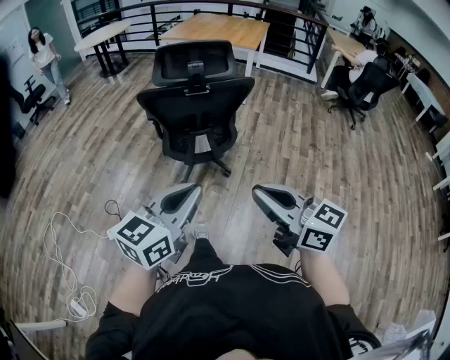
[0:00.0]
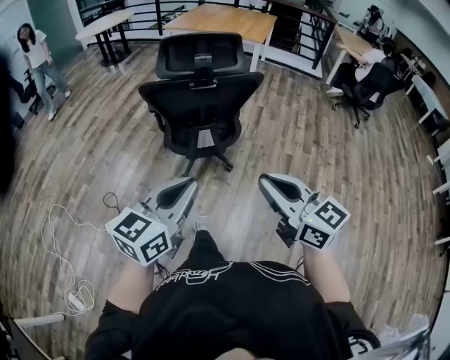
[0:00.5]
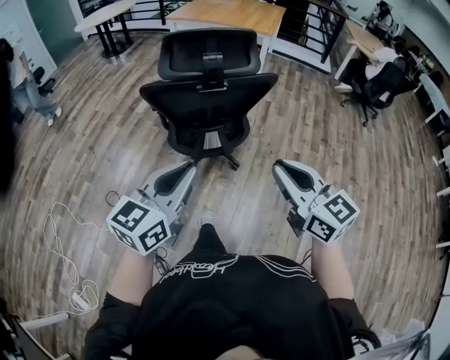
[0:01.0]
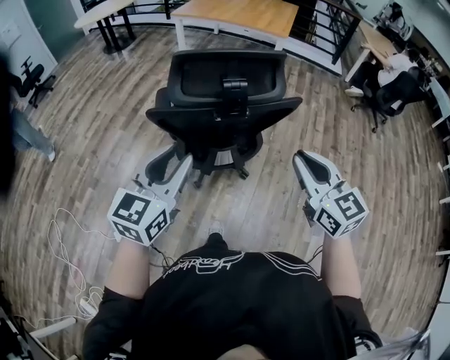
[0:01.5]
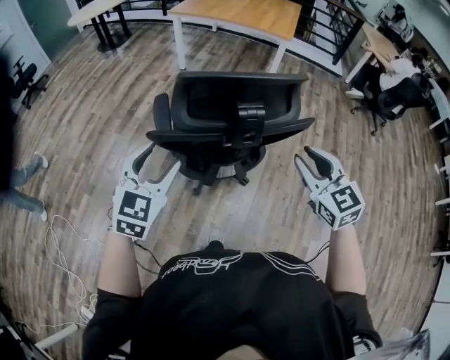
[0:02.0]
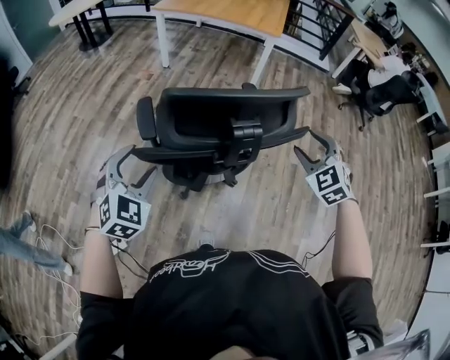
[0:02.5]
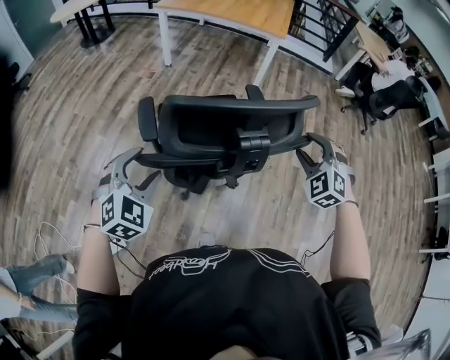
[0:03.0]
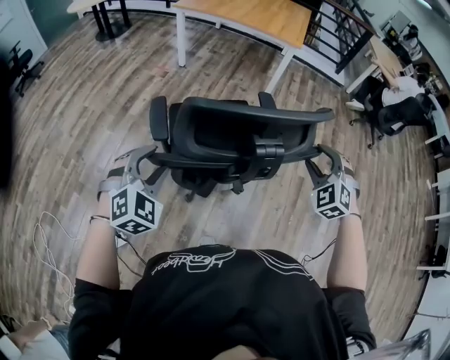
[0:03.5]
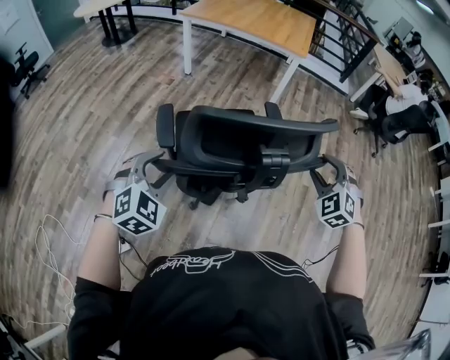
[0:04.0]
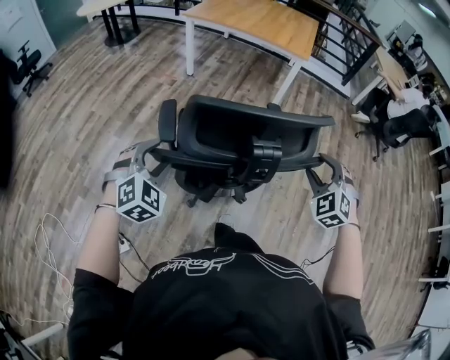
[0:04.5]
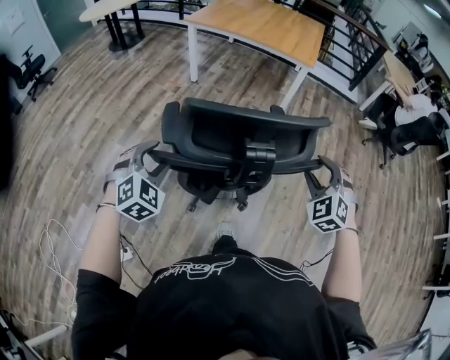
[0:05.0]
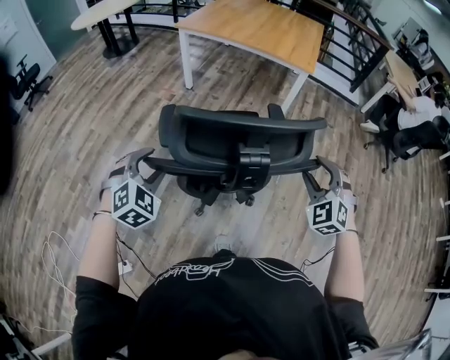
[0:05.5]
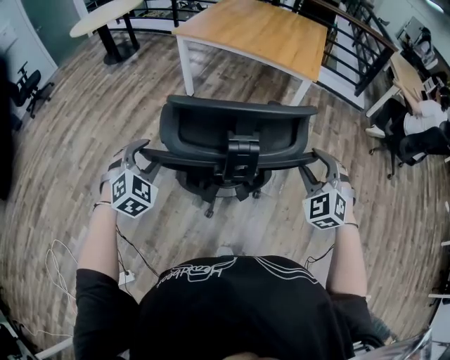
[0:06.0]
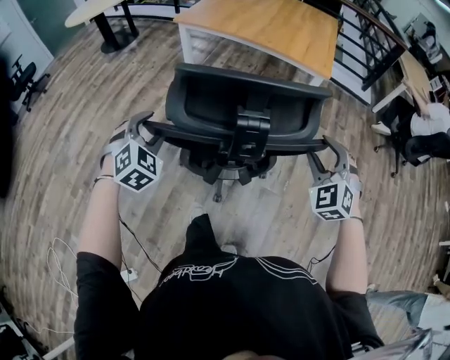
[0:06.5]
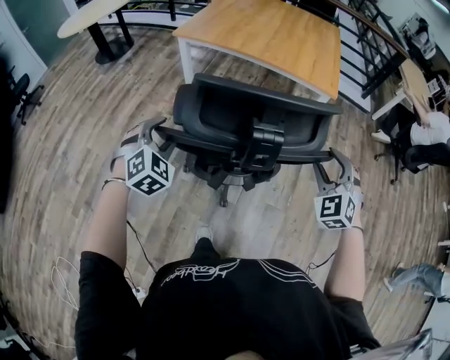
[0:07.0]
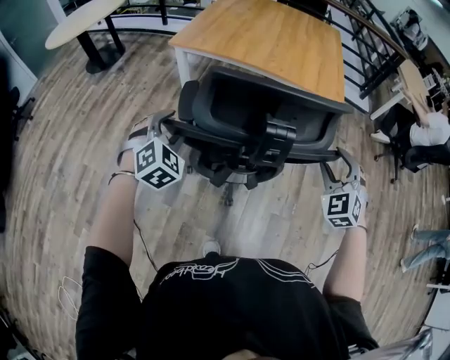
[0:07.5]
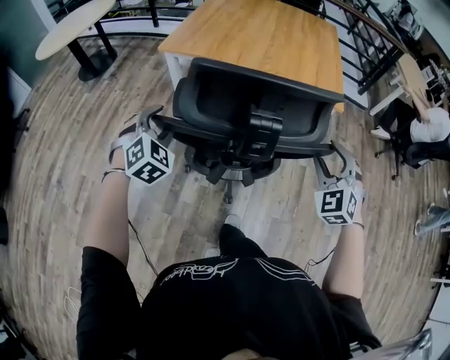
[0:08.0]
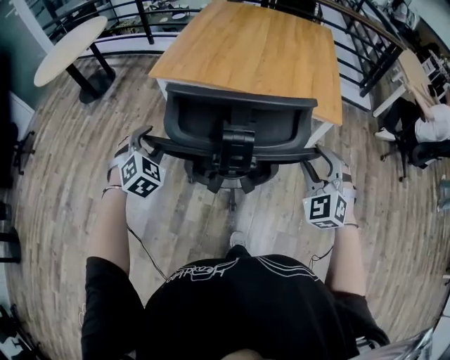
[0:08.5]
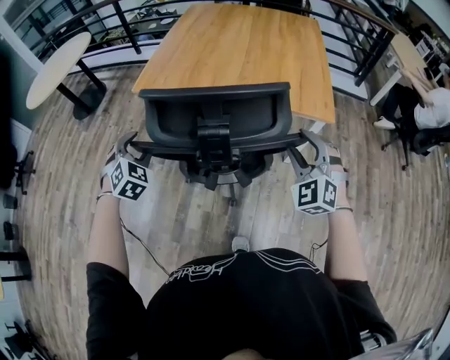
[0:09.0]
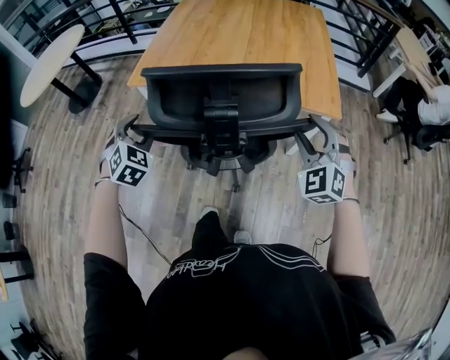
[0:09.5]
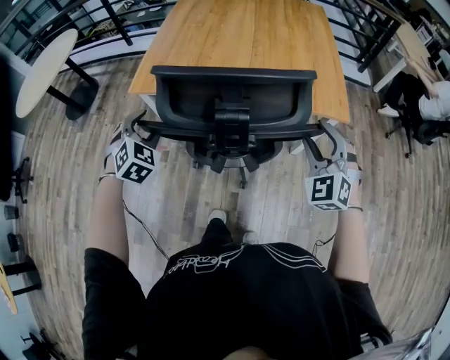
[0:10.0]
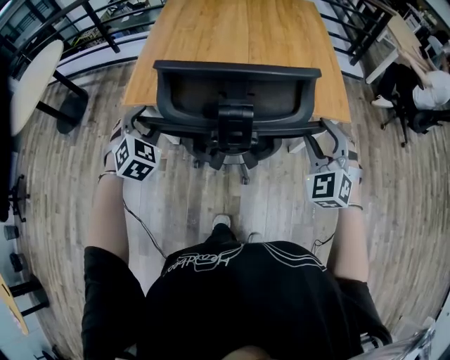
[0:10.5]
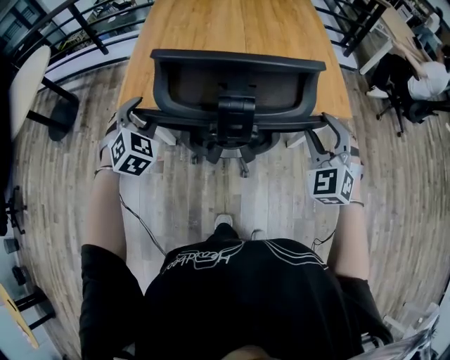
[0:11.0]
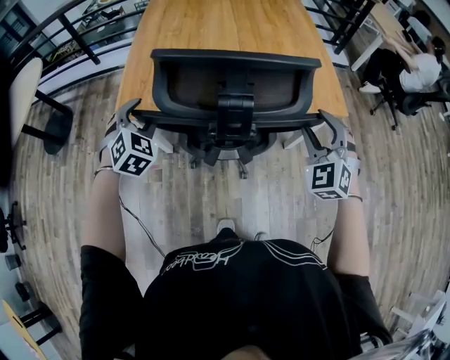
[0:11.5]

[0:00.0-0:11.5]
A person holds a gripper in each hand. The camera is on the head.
0:00.0 to 0:02.0: The left gripper travels forward and to the left by roughly 40 cm, turns by about 40 degrees, and opens up, while the right gripper heads forward, covering approximately 40 cm, and rotates approximately 40 degrees.
0:02.0 to 0:04.0: The right gripper travels forward and downward by approximately 15 cm, swivels approximately 50 degrees, and opens. The left gripper goes some 10 cm downward and forward, and rotates roughly 30 degrees.
0:04.0 to 0:06.0: The two grippers go approximately 25 cm forward.
0:06.0 to 0:07.5: The right gripper goes approximately 30 cm forward and to the left, while the left gripper goes roughly 40 cm forward.
0:07.5 to 0:09.5: Both grippers move forward, approximately 25 cm.
0:09.5 to 0:11.5: The left gripper is displaced forward by some 20 cm. The right gripper shifts about 10 cm forward and to the left.

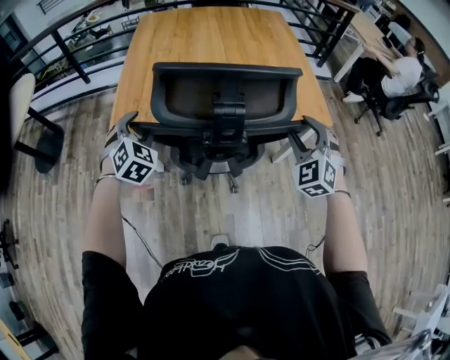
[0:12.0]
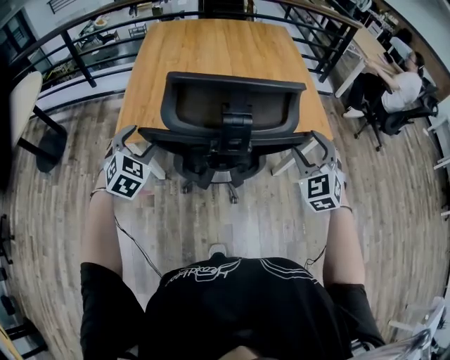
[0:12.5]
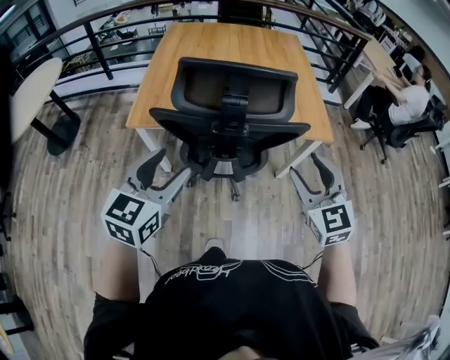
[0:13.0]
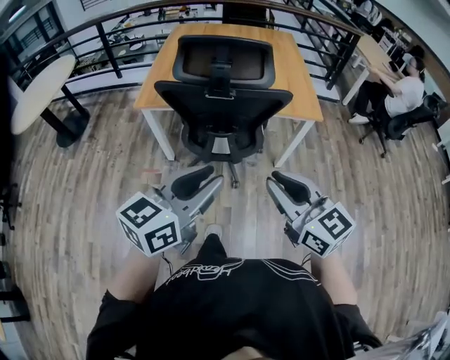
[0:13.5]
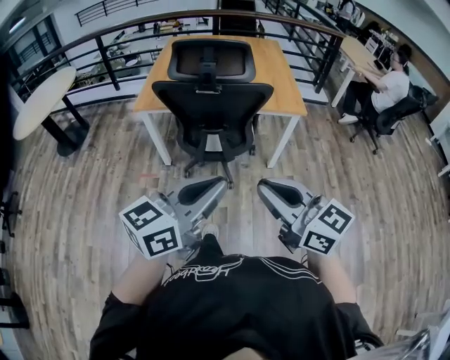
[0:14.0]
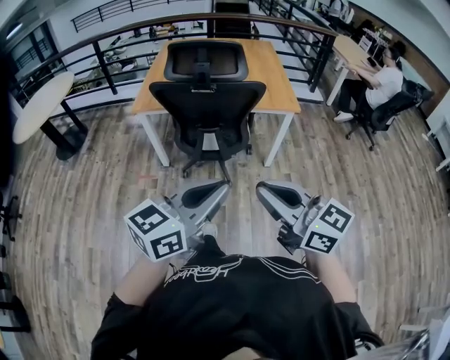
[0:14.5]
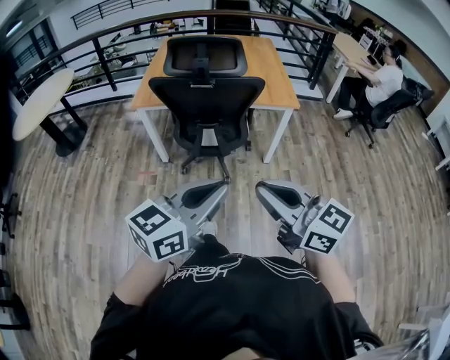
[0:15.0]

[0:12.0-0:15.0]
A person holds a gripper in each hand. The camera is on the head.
0:12.0 to 0:13.5: The left gripper travels backward, to the right and upward by some 50 cm, angles its fingers upward, by some 30 degrees, and closes up; the right gripper goes some 35 cm backward, changes its angle by about 70 degrees, and closes its fingers.
0:13.5 to 0:15.0: The right gripper travels backward by approximately 15 cm. The left gripper travels backward and to the right by about 15 cm, and closes up.

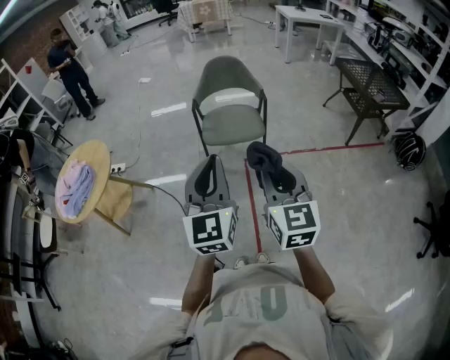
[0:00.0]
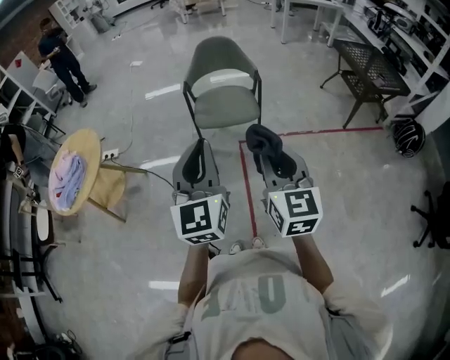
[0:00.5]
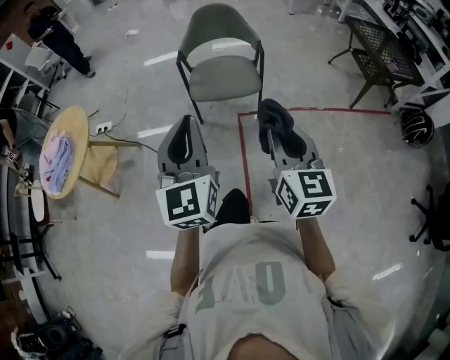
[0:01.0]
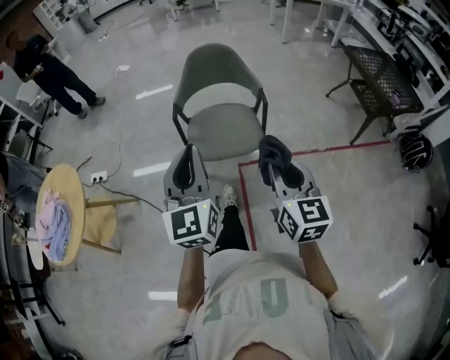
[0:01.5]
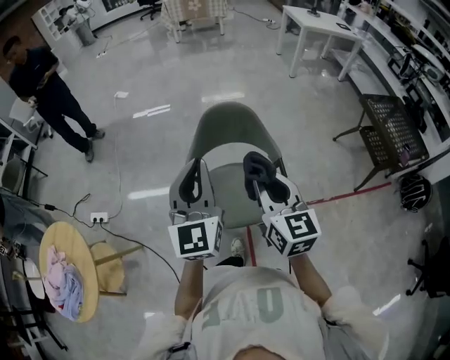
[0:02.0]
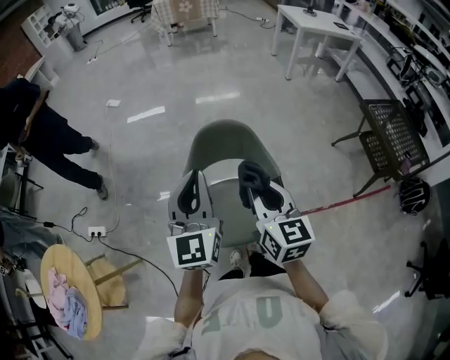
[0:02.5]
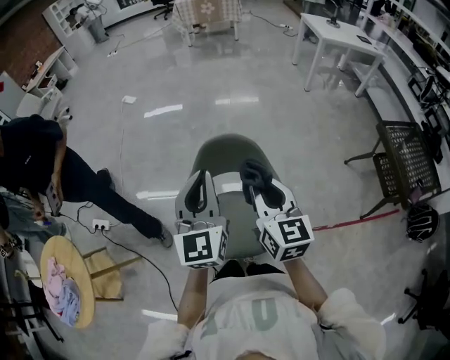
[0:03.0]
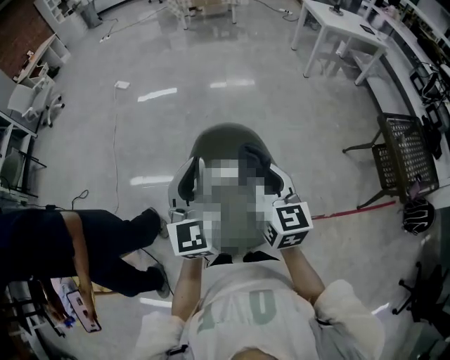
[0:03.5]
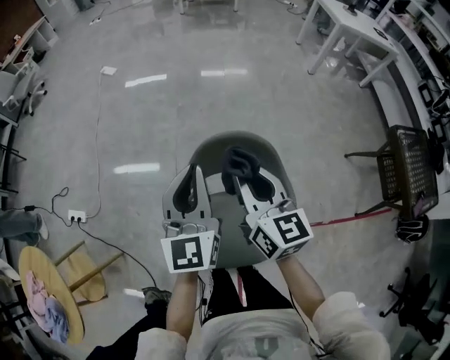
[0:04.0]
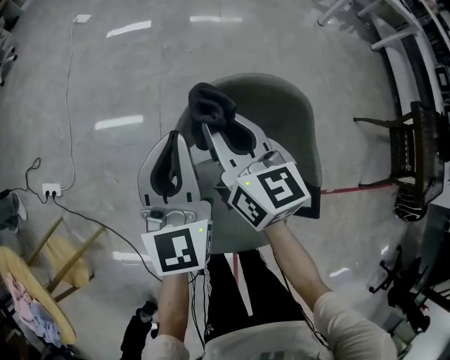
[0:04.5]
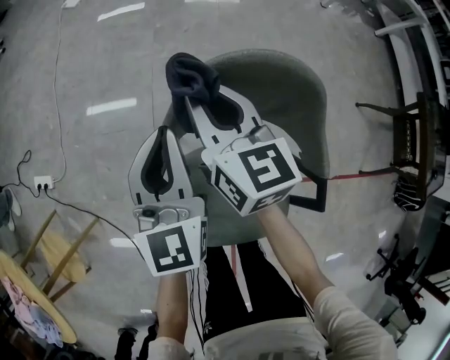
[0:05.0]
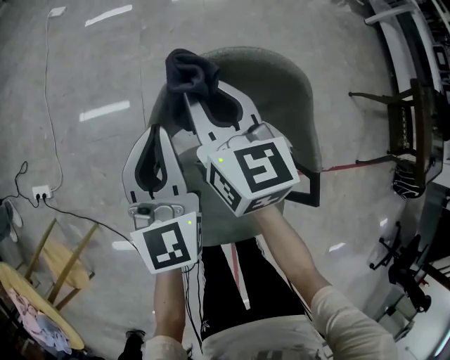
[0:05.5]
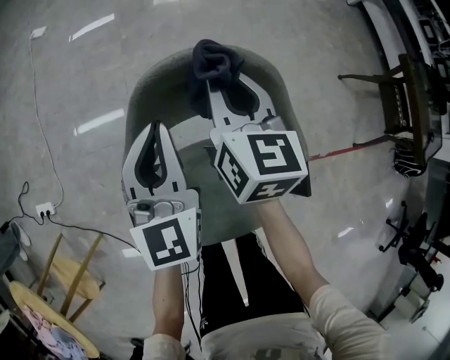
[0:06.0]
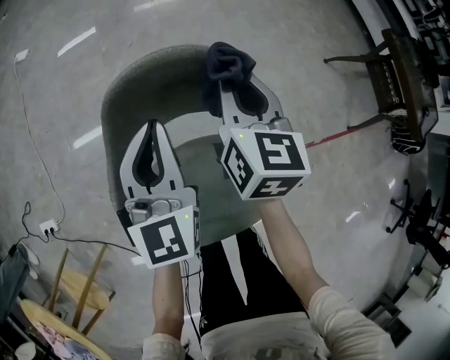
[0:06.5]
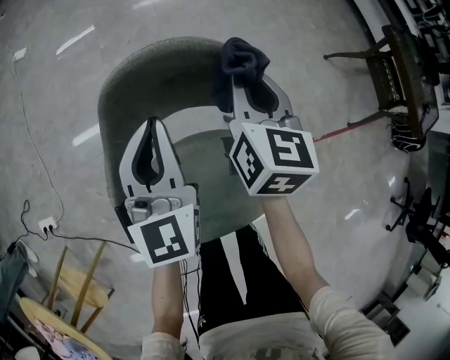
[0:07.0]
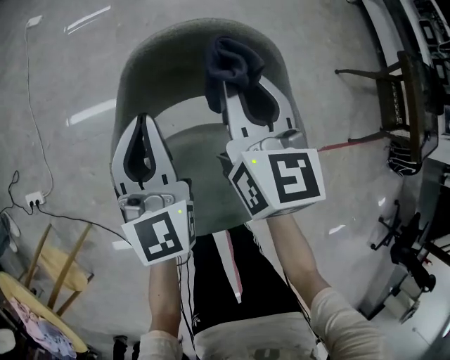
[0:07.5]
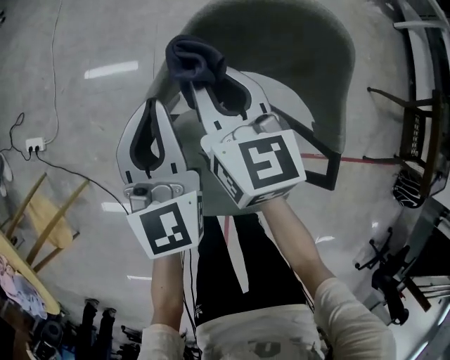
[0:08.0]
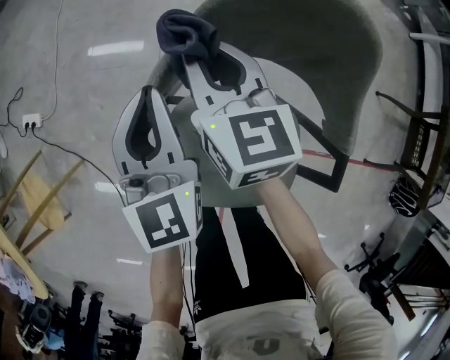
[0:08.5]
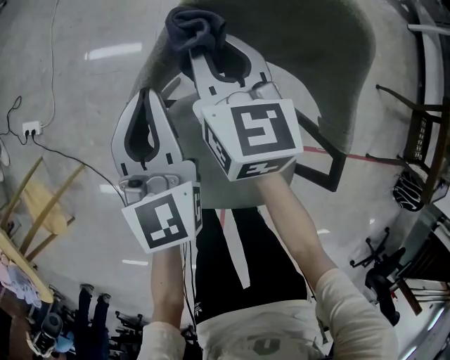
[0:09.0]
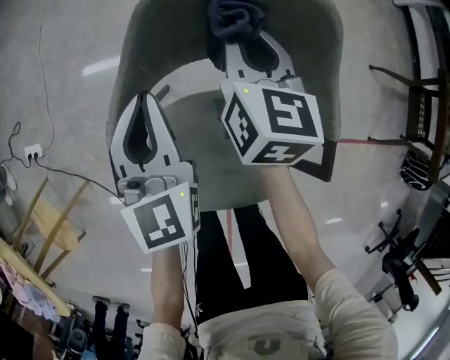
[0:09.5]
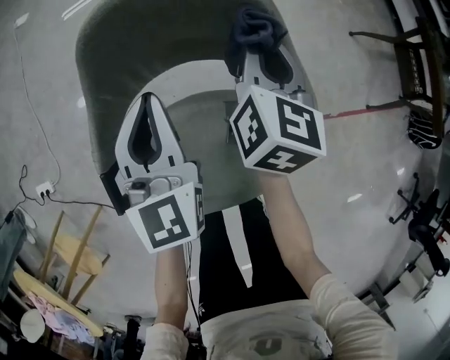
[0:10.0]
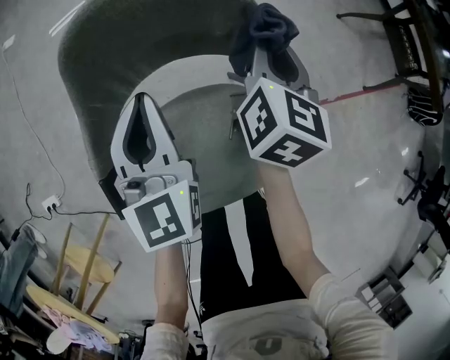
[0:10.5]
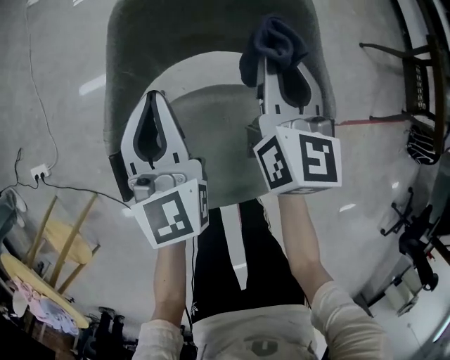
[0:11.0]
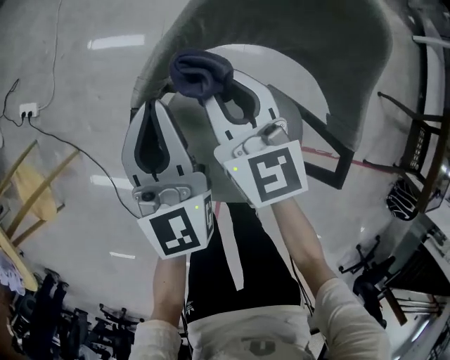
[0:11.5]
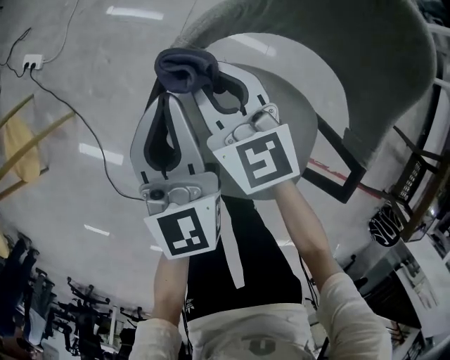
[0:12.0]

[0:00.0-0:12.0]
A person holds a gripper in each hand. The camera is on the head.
0:00.0 to 0:02.0: The two grippers travel together, forward, about 60 cm.
0:02.0 to 0:04.0: The right gripper is displaced forward by some 30 cm; the left gripper travels forward and downward by roughly 30 cm.
0:04.0 to 0:06.0: The right gripper travels downward and forward by some 20 cm, while the left gripper is displaced downward by some 20 cm.
0:06.0 to 0:08.0: The right gripper shifts by approximately 15 cm, and turns by about 20 degrees. Meanwhile the left gripper ends up about 10 cm from where it was.
0:08.0 to 0:10.0: The right gripper moves about 25 cm, and rotates about 40 degrees. The left gripper moves some 10 cm.
0:10.0 to 0:12.0: The left gripper shifts by roughly 20 cm, and turns by approximately 40 degrees; the right gripper ends up some 35 cm from where it was, and turns by some 70 degrees.
